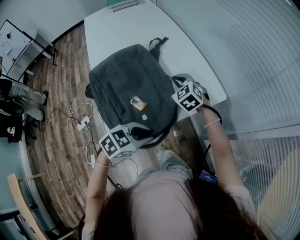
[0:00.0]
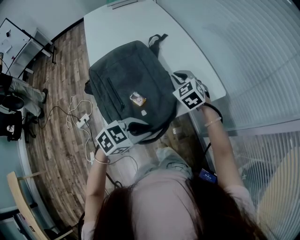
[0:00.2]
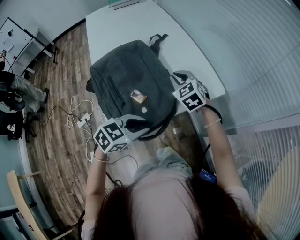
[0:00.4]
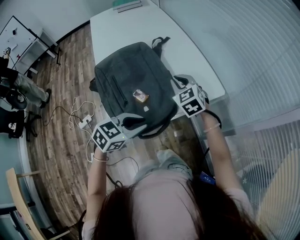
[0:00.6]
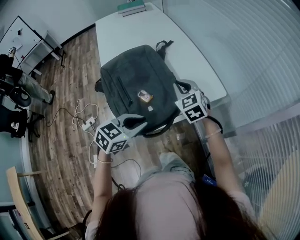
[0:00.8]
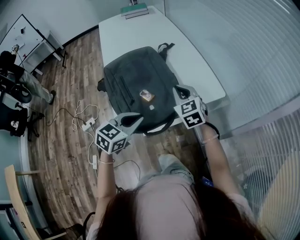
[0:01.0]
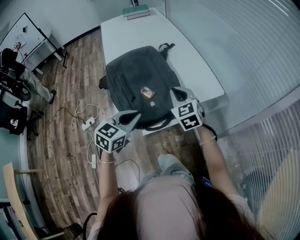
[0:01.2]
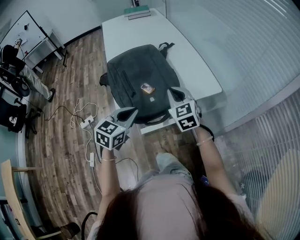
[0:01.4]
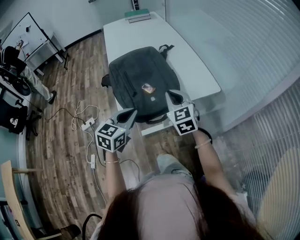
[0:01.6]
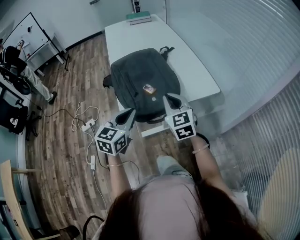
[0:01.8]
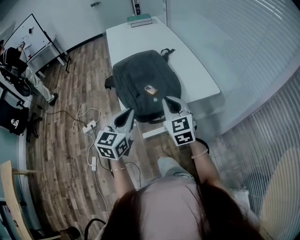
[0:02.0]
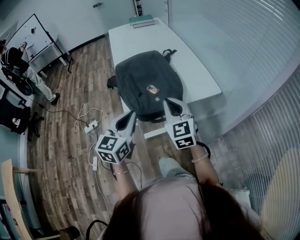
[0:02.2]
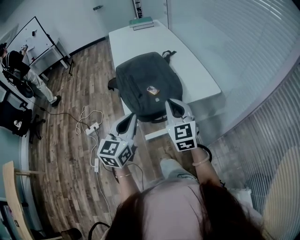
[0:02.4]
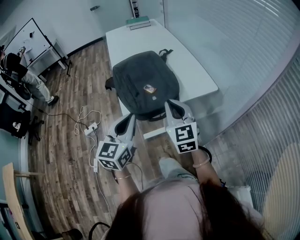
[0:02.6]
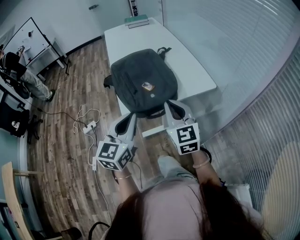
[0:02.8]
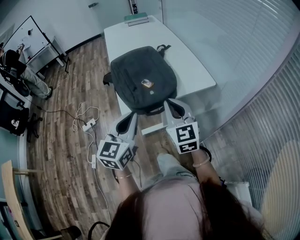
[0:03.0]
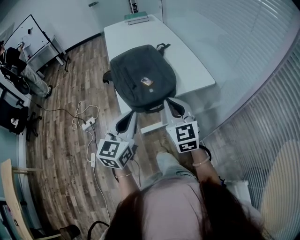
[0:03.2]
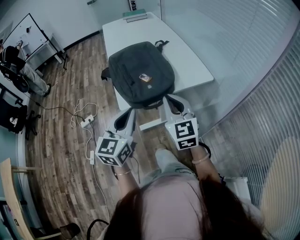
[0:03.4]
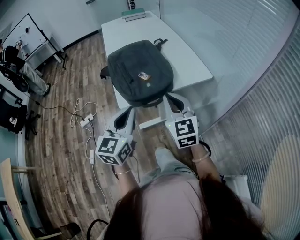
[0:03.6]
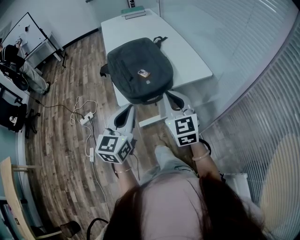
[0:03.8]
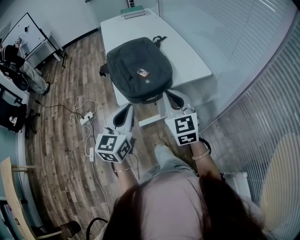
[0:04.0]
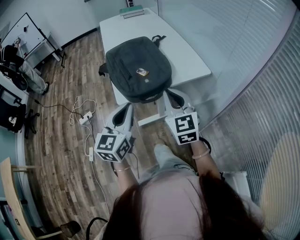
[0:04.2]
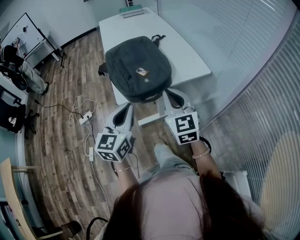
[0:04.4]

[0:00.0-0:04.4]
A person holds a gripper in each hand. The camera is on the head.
0:00.0 to 0:01.4: The left gripper goes approximately 10 cm upward and to the left, and rotates some 40 degrees. The right gripper moves backward and upward, some 20 cm, and swivels approximately 20 degrees.
0:01.4 to 0:03.0: Both grippers move backward and upward, roughly 15 cm. The left gripper swivels about 20 degrees.
0:03.0 to 0:04.4: The grippers make only small movements.

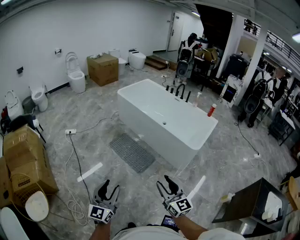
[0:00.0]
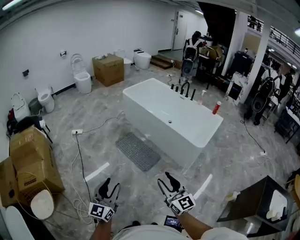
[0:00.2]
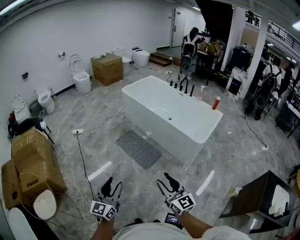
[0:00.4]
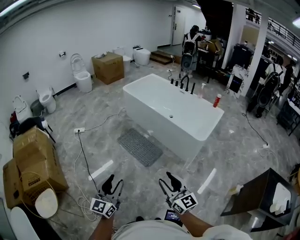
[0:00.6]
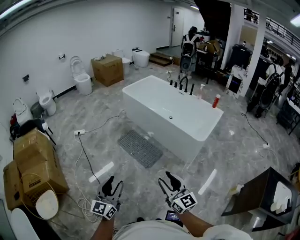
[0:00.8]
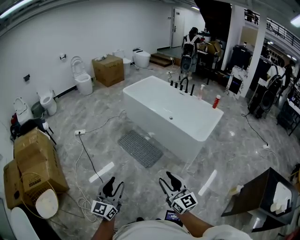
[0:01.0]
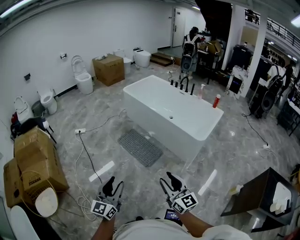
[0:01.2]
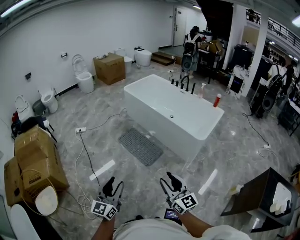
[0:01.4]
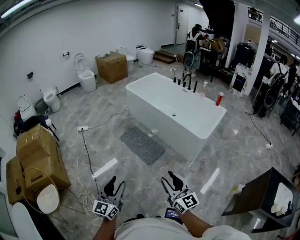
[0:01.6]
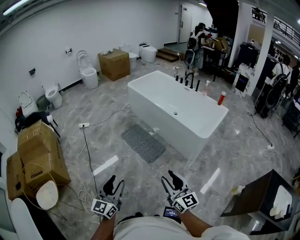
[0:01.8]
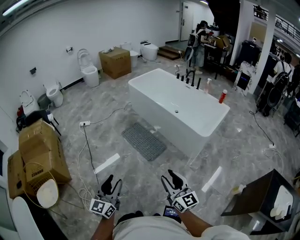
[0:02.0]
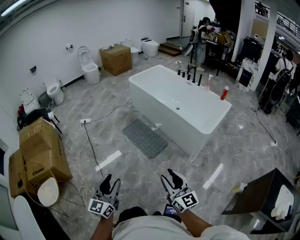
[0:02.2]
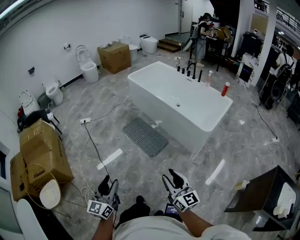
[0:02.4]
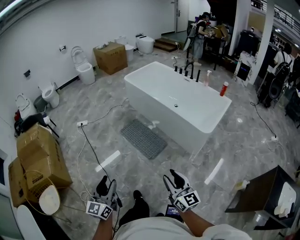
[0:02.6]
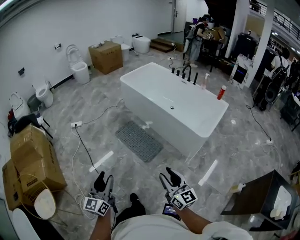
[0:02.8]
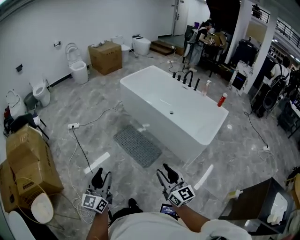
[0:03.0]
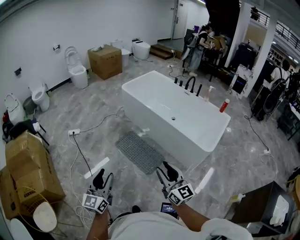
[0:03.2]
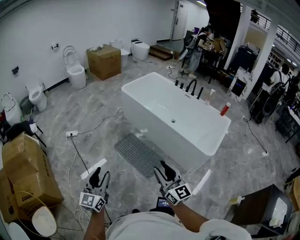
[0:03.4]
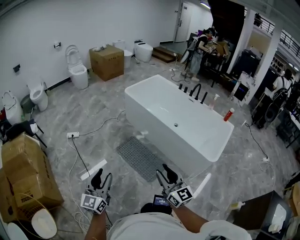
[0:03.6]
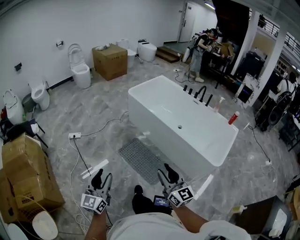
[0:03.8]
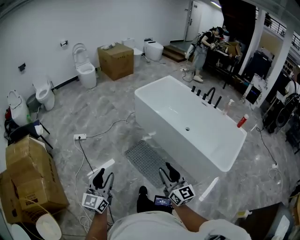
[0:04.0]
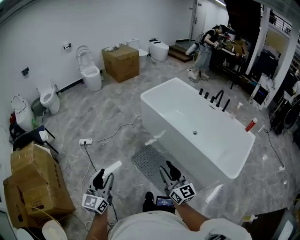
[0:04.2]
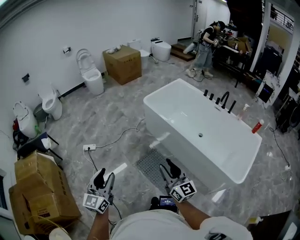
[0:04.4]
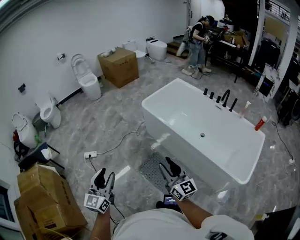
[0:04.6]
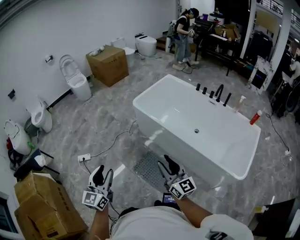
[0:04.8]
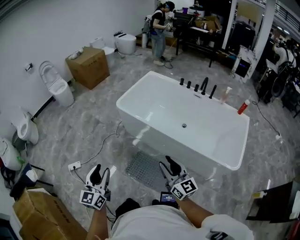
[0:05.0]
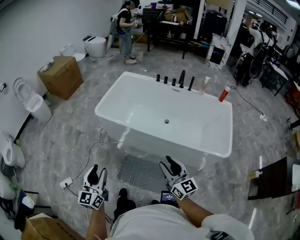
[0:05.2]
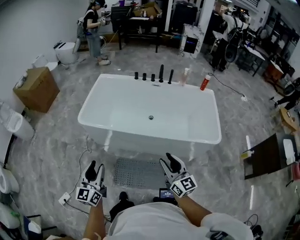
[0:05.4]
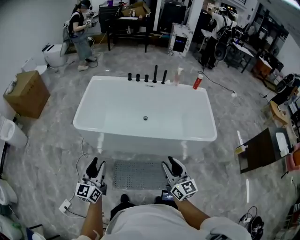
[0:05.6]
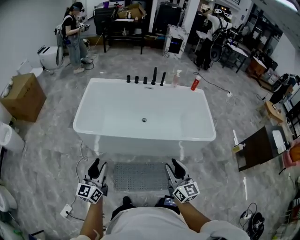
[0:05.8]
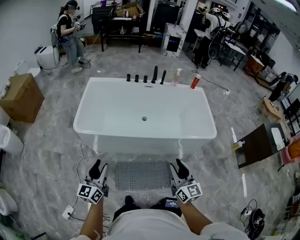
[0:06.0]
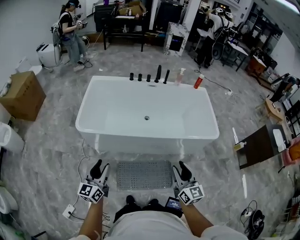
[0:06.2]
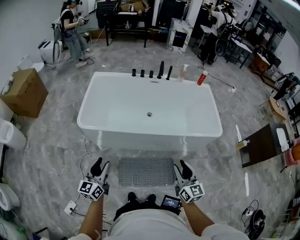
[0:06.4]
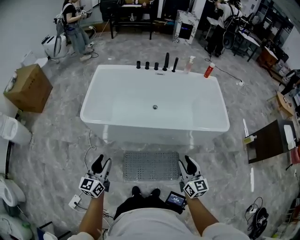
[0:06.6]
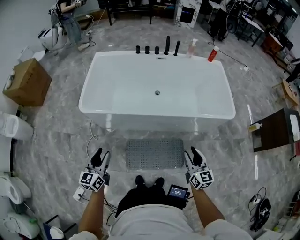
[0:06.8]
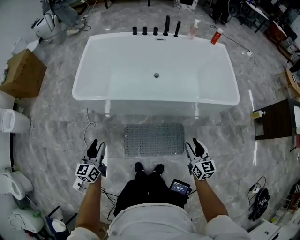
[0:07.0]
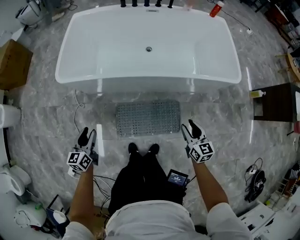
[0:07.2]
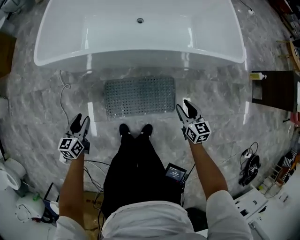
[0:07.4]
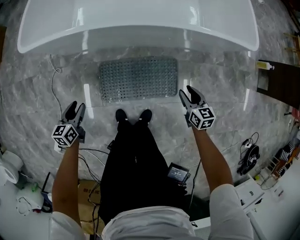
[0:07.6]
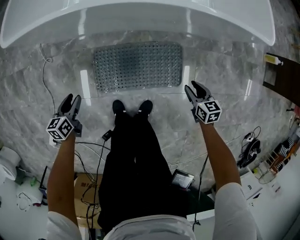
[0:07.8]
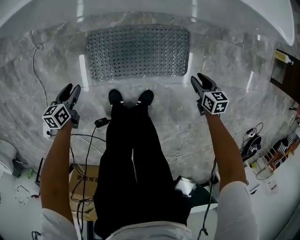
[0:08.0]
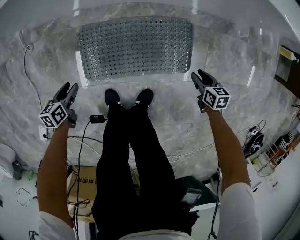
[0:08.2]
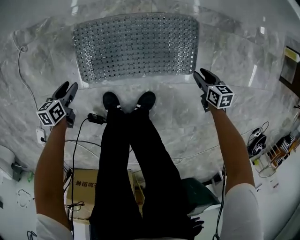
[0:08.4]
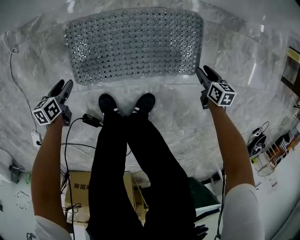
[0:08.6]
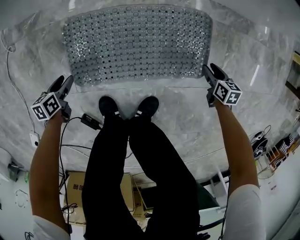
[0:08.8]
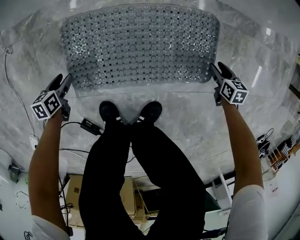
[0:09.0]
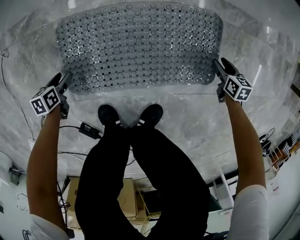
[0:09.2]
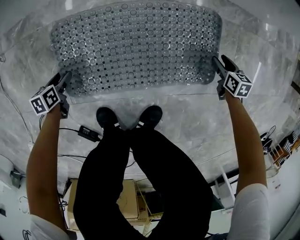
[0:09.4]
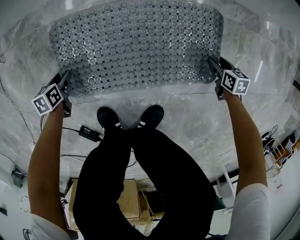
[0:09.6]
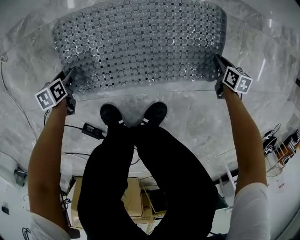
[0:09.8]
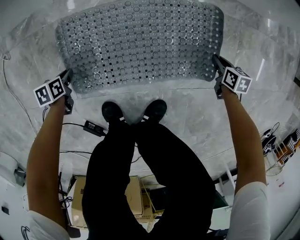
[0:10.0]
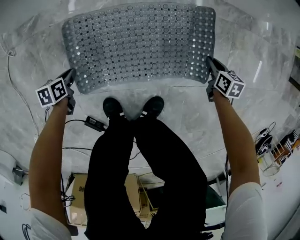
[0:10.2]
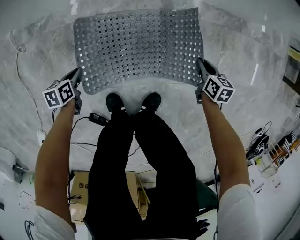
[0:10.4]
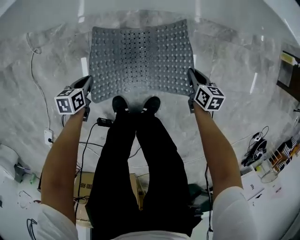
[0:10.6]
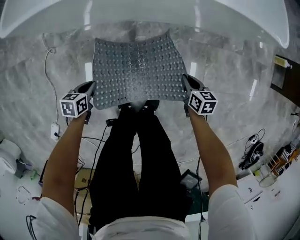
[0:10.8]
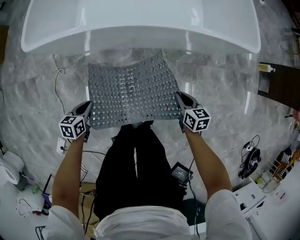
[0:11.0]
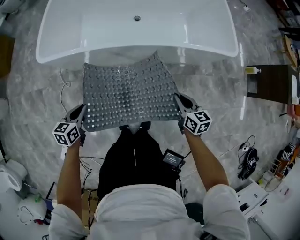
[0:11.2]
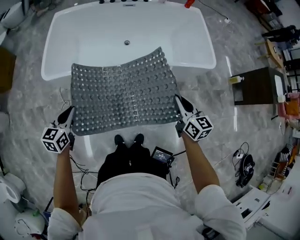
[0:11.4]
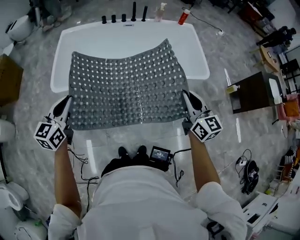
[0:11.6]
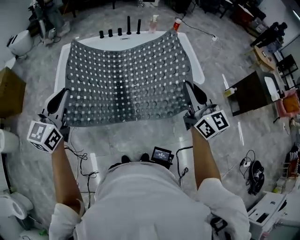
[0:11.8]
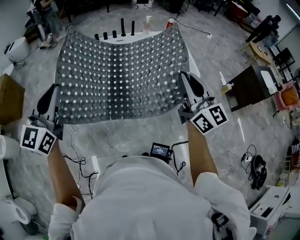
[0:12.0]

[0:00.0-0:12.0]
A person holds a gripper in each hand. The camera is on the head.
0:00.0 to 0:01.6: The left gripper shifts about 10 cm backward and to the right. The right gripper moves backward, roughly 5 cm.
0:01.6 to 0:03.0: The two grippers go some 20 cm forward.
0:03.0 to 0:04.4: Both grippers are carried forward, about 50 cm.
0:04.4 to 0:06.0: The right gripper shifts by approximately 20 cm, and rotates roughly 60 degrees, while the left gripper ends up about 50 cm from where it was, and rotates some 50 degrees.
0:06.0 to 0:07.6: Both grippers travel together downward, roughly 50 cm. The left gripper tips its fingers downward by approximately 40 degrees. The right gripper angles its fingers downward, by some 40 degrees.
0:07.6 to 0:09.0: Both grippers move downward, roughly 50 cm. The left gripper changes its angle by some 30 degrees; the right gripper swivels roughly 30 degrees.
0:09.0 to 0:10.4: The right gripper goes some 15 cm upward and to the left, and closes; the left gripper heads upward, covering approximately 10 cm, and closes.
0:10.4 to 0:12.0: Both grippers move upward, roughly 1 m. The right gripper tips its fingers upward by approximately 70 degrees; the left gripper angles its fingers upward, by about 60 degrees.

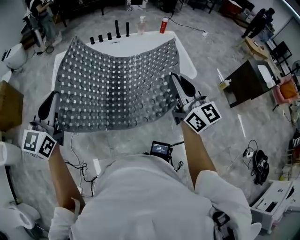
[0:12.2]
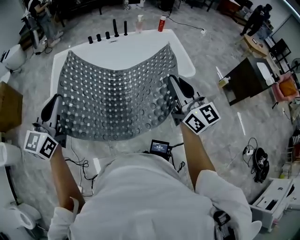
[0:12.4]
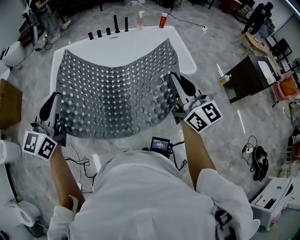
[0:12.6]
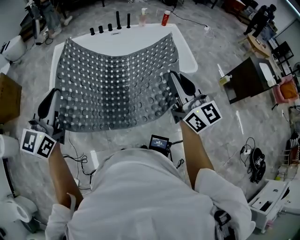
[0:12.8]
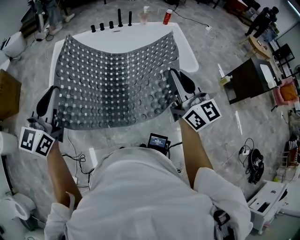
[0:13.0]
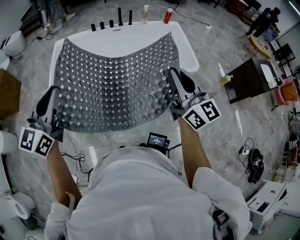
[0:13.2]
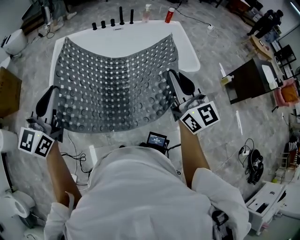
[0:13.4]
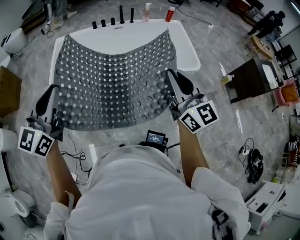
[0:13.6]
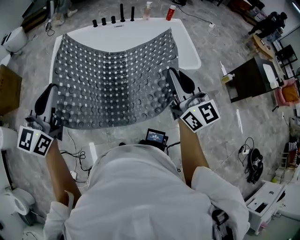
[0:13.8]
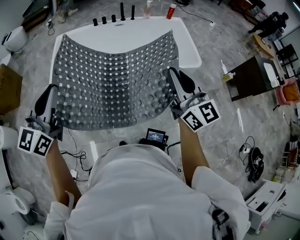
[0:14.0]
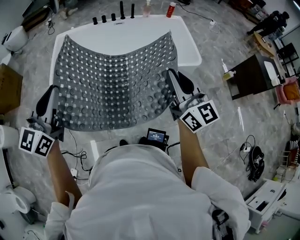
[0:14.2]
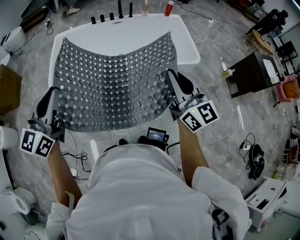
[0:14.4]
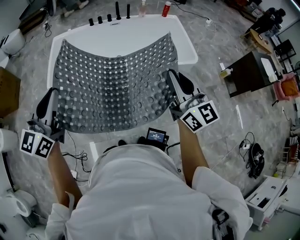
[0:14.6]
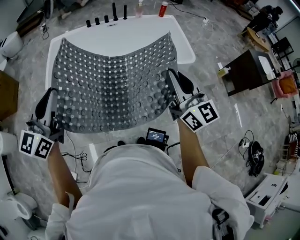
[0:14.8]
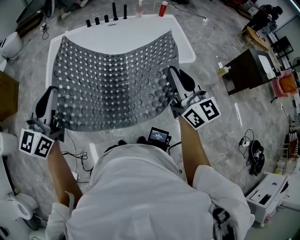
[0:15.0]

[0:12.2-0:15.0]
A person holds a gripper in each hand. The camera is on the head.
0:12.2 to 0:15.0: There are only small adjustments of the grippers.

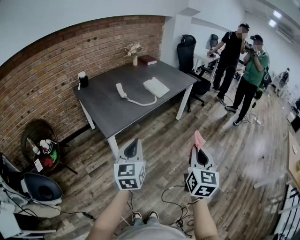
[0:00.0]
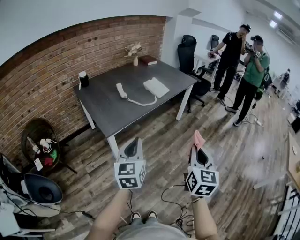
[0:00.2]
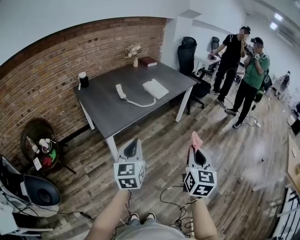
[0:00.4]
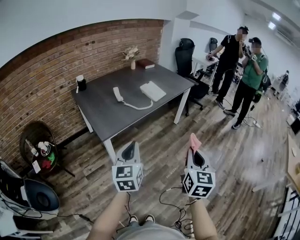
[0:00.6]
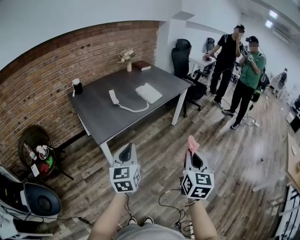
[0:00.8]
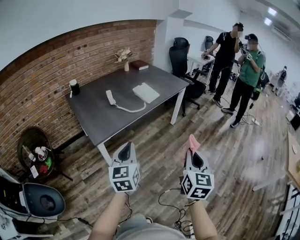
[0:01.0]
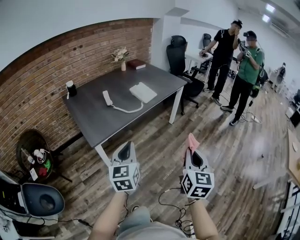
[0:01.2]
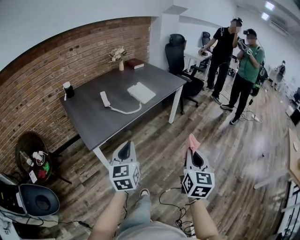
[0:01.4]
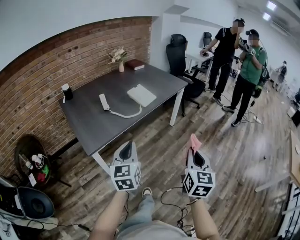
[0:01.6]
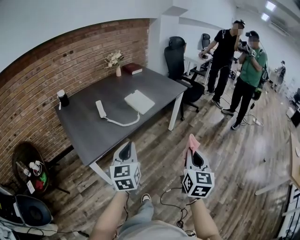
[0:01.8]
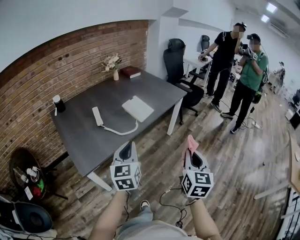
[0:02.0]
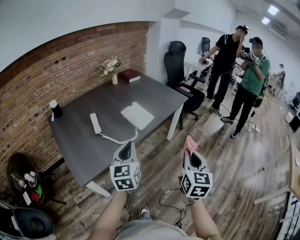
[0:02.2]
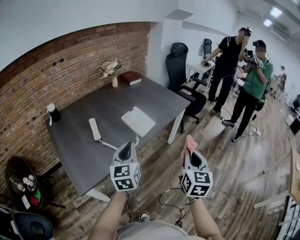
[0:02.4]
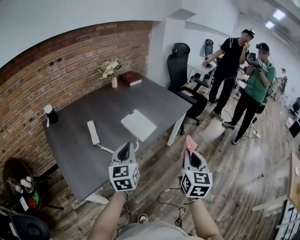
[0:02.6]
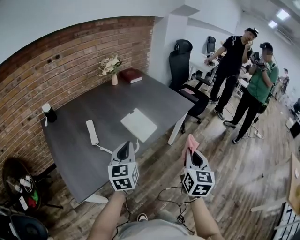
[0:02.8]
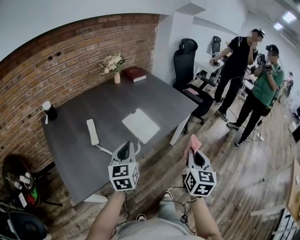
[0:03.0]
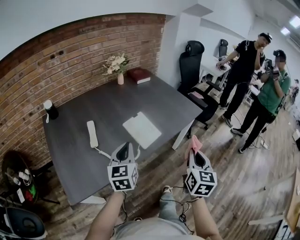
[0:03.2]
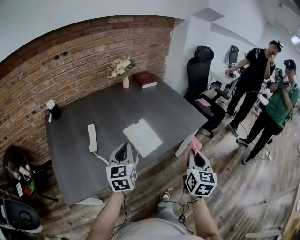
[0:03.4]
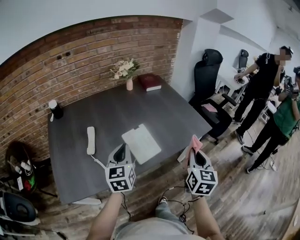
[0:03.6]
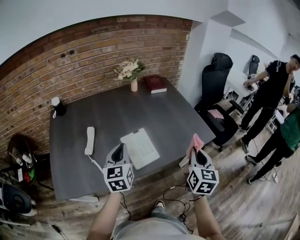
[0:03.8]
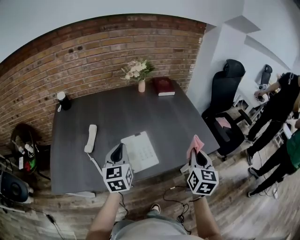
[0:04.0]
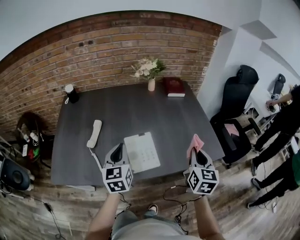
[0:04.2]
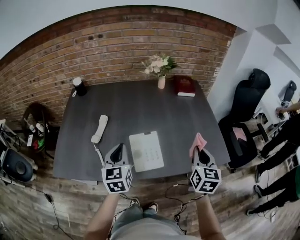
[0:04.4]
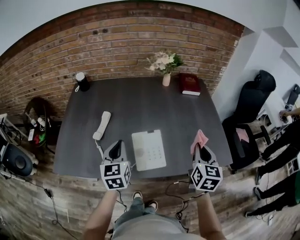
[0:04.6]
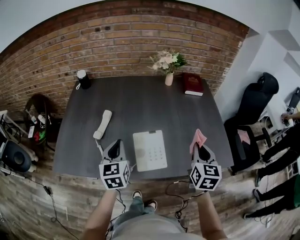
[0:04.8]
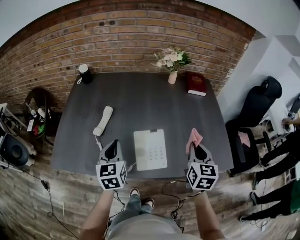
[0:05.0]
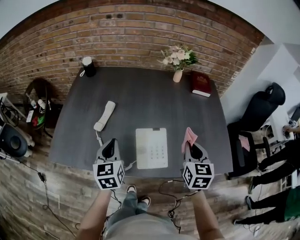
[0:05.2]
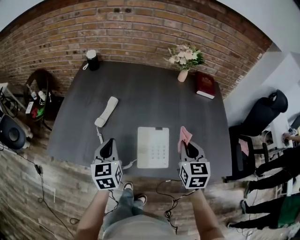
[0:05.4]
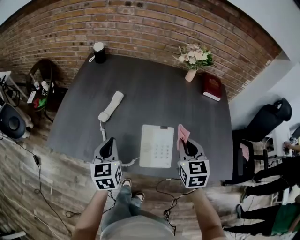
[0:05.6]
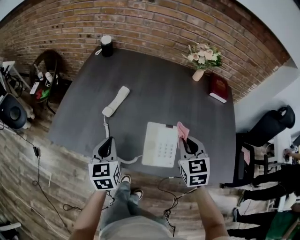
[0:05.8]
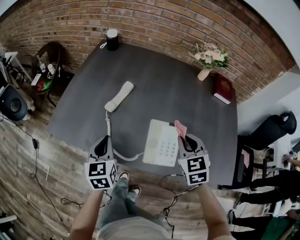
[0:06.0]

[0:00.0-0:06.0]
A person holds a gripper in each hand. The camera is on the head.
0:00.0 to 0:01.6: The grippers both shift forward and to the right by roughly 15 cm.
0:01.6 to 0:03.0: The two grippers go about 35 cm forward.
0:03.0 to 0:04.4: The right gripper moves some 40 cm, and changes its angle by approximately 40 degrees. Meanwhile the left gripper shifts by approximately 15 cm, and rotates about 40 degrees.
0:04.4 to 0:06.0: The right gripper ends up approximately 25 cm from where it was, and rotates approximately 50 degrees. Meanwhile the left gripper moves about 20 cm, and swivels approximately 20 degrees.